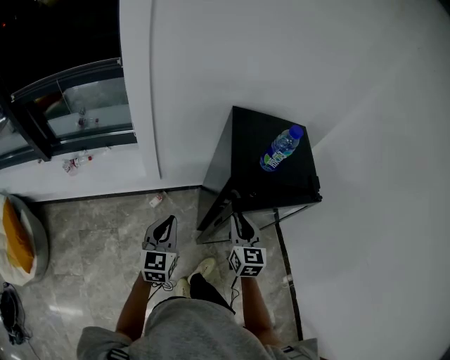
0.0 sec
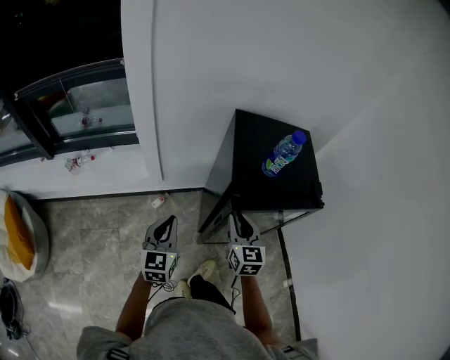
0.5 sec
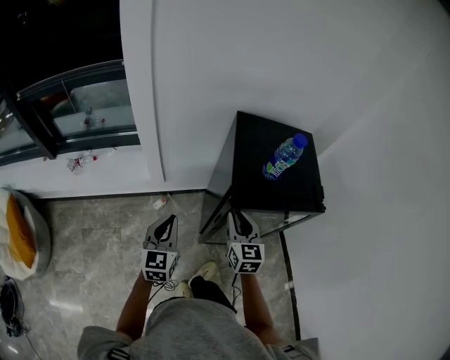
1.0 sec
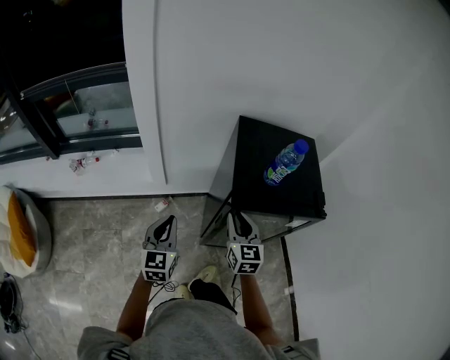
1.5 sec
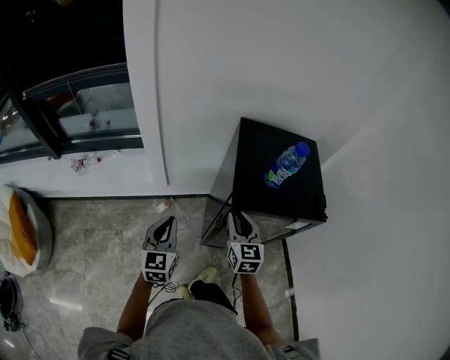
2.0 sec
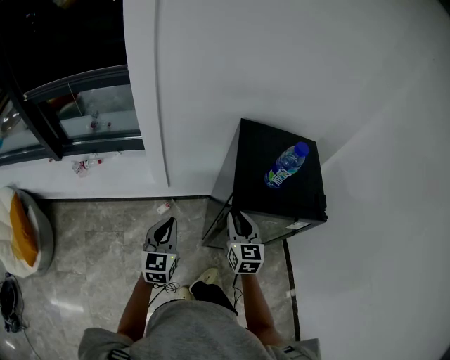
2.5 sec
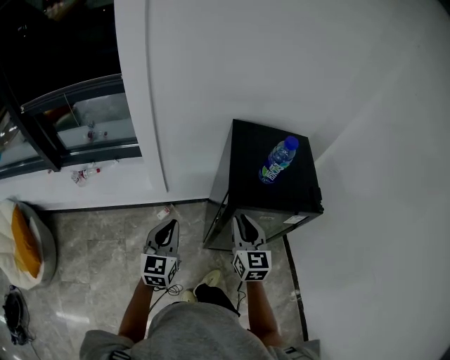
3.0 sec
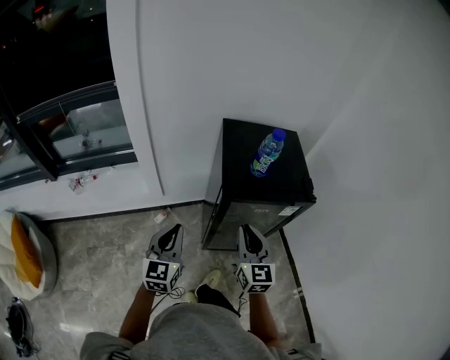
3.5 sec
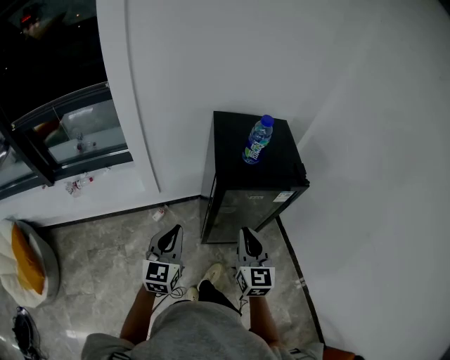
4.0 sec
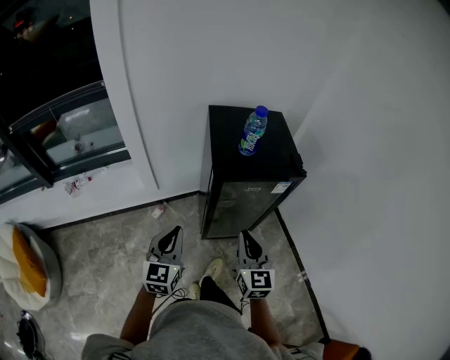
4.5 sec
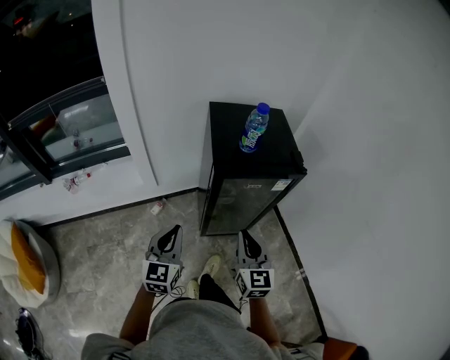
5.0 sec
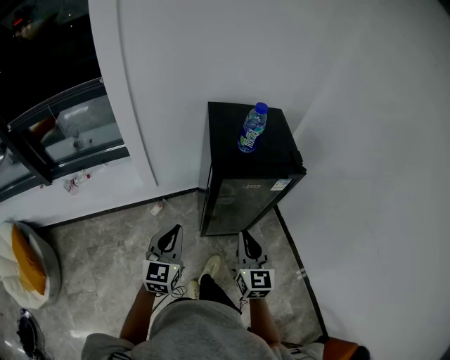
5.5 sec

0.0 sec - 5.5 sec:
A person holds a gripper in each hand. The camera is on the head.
0.0 sec - 2.0 sec: The right gripper is displaced forward by approximately 5 cm.
2.0 sec - 3.5 sec: The right gripper goes some 15 cm backward and upward, while the left gripper shifts some 10 cm backward and upward.
3.5 sec - 5.5 sec: The left gripper travels backward by some 5 cm. Meanwhile the right gripper heads backward, covering approximately 10 cm.

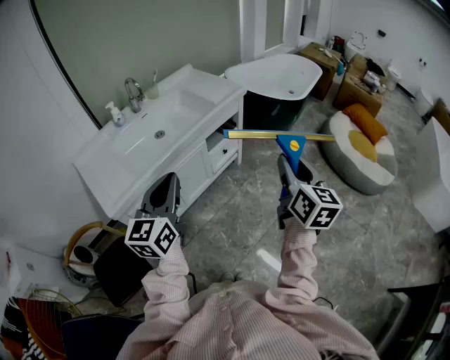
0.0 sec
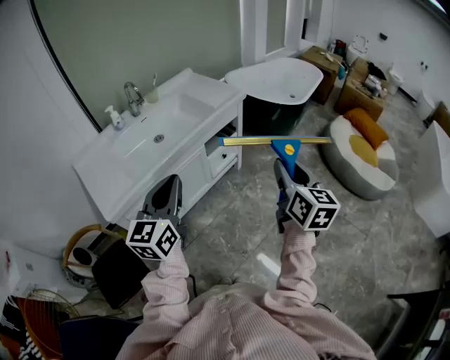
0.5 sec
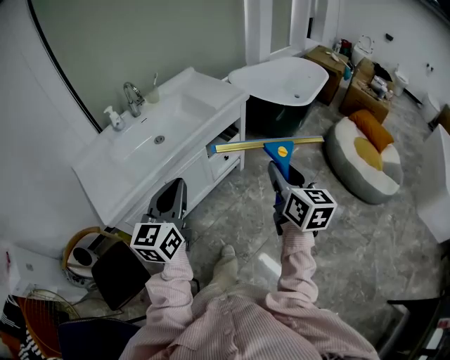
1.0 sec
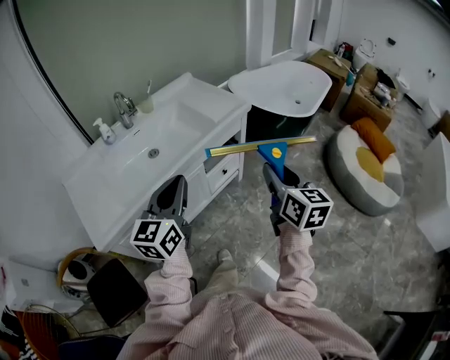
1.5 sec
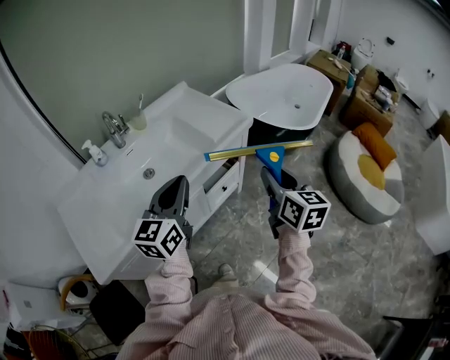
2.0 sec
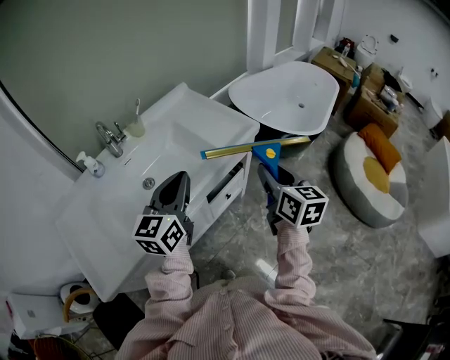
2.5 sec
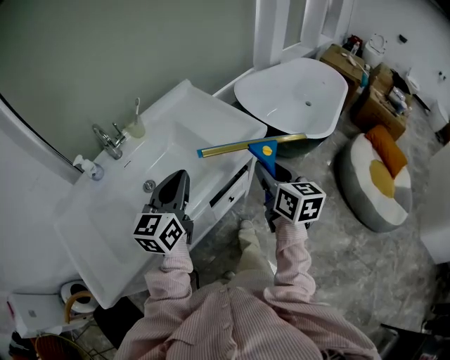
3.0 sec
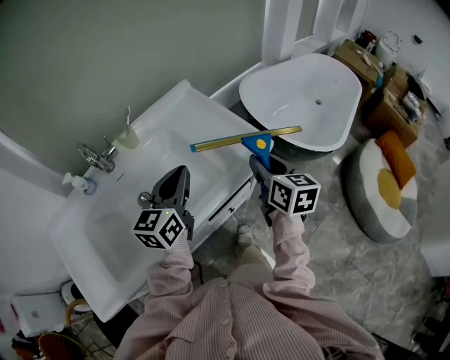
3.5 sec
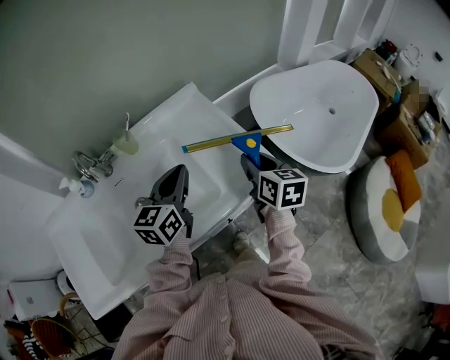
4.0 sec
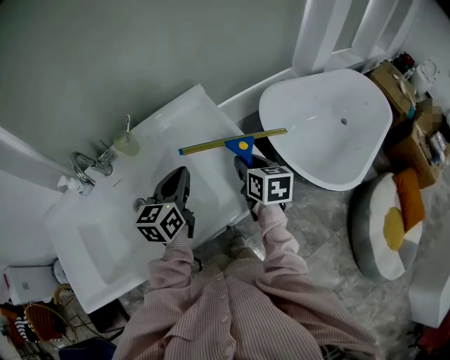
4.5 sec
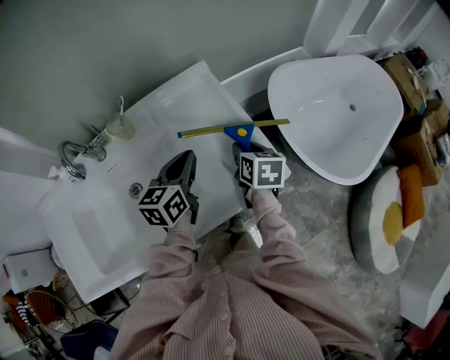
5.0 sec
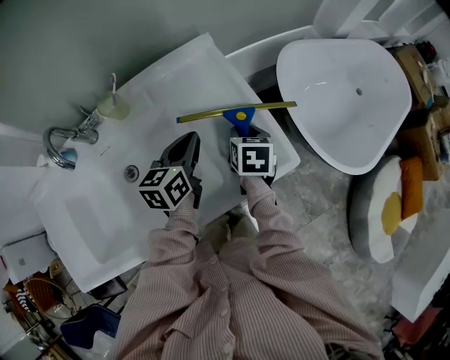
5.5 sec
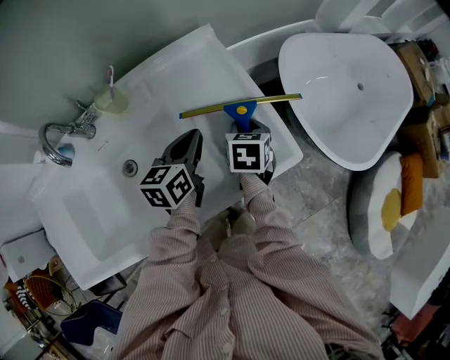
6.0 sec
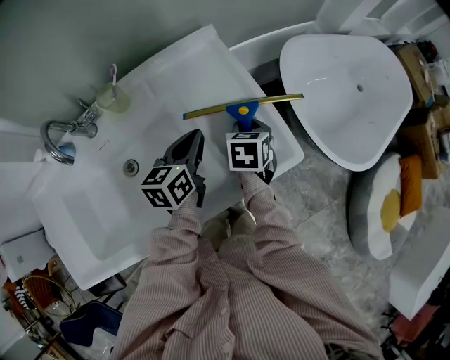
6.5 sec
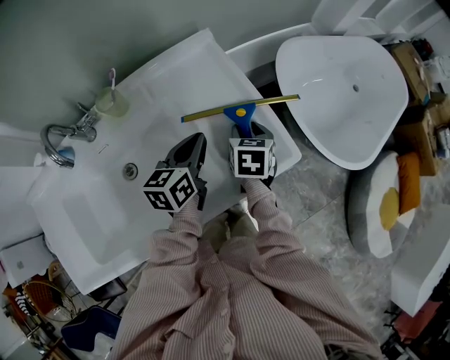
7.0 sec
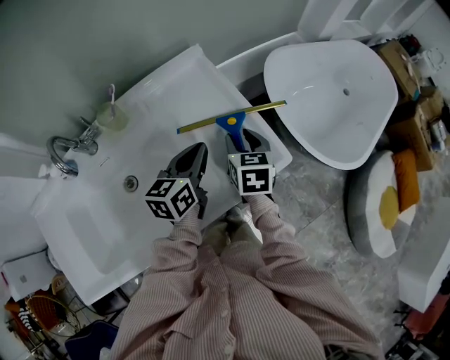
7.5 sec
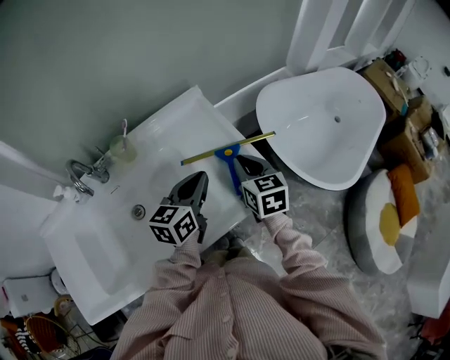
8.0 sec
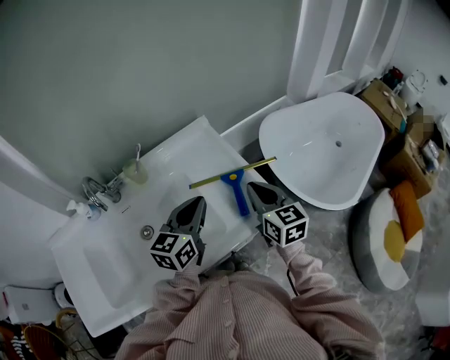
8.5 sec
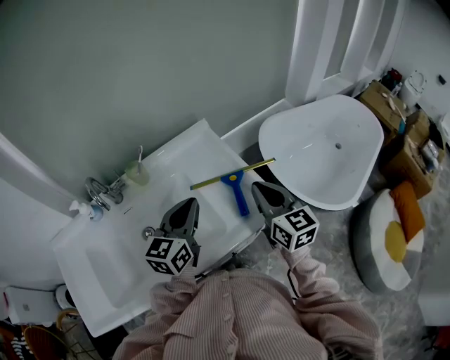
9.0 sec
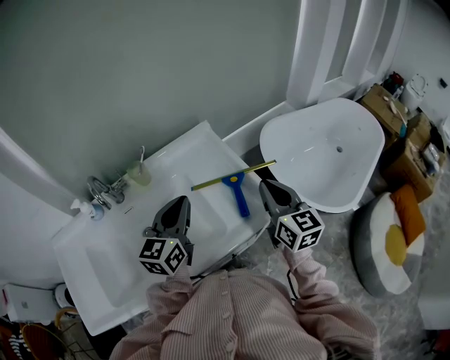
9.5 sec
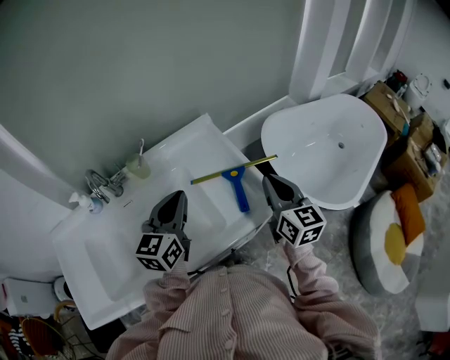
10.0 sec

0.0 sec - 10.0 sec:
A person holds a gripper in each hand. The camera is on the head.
0.0 sec - 2.0 sec: The grippers both shift forward by some 30 cm.
2.0 sec - 4.0 sec: The two grippers go roughly 35 cm forward.
4.0 sec - 6.0 sec: Both grippers move downward and forward, some 15 cm. The right gripper turns by about 30 degrees.
6.0 sec - 8.0 sec: Both grippers move upward, approximately 10 cm. The right gripper swivels some 20 degrees, and closes.
8.0 sec - 10.0 sec: The left gripper moves upward and to the left, about 10 cm, while the right gripper goes roughly 10 cm upward, to the right and backward, and swivels roughly 20 degrees.

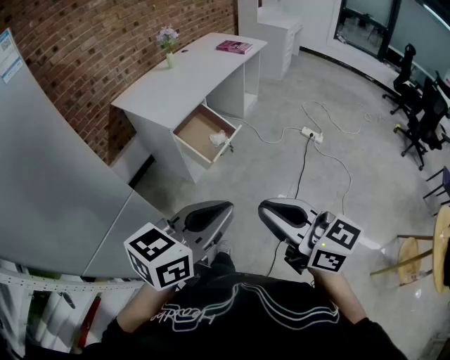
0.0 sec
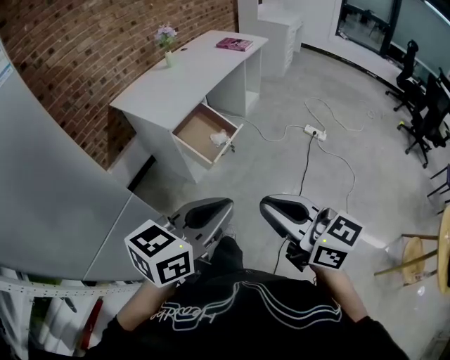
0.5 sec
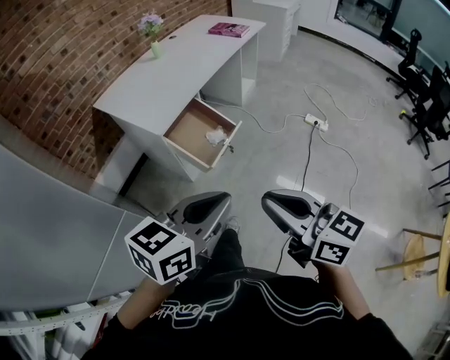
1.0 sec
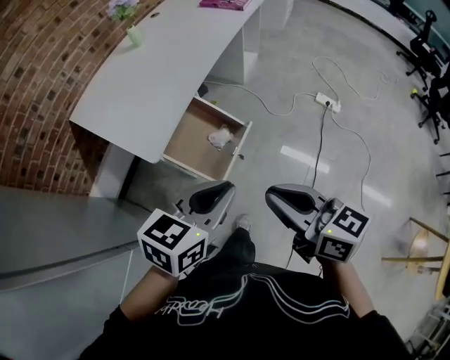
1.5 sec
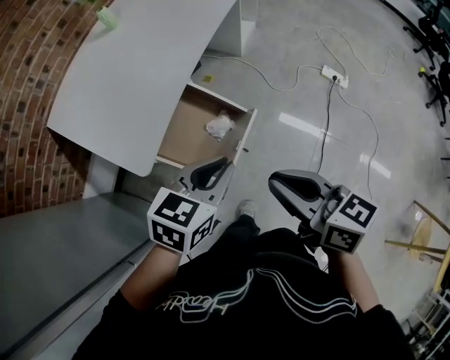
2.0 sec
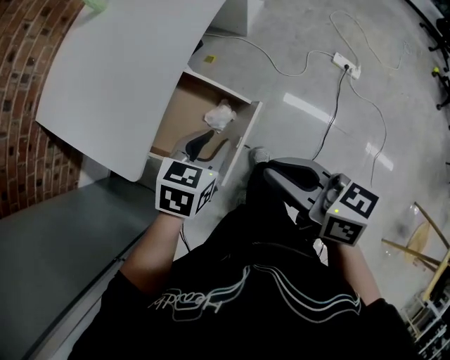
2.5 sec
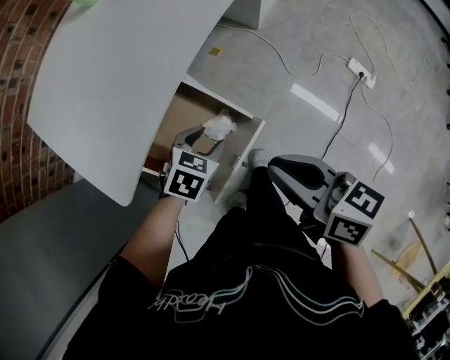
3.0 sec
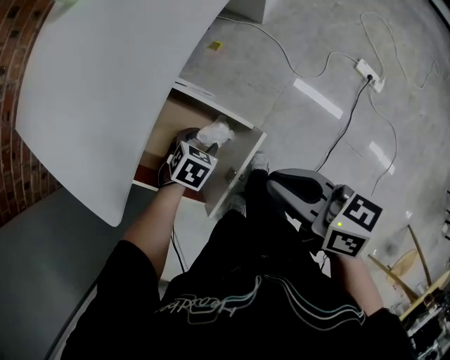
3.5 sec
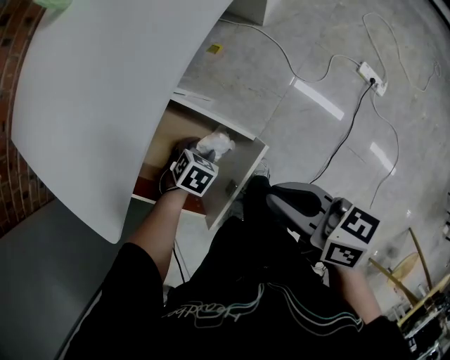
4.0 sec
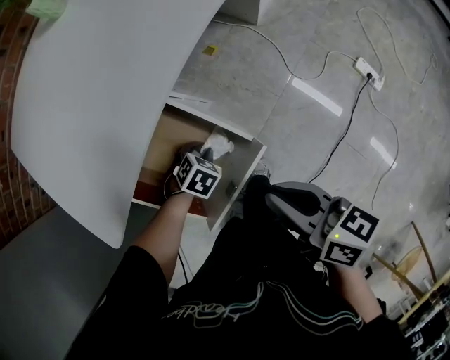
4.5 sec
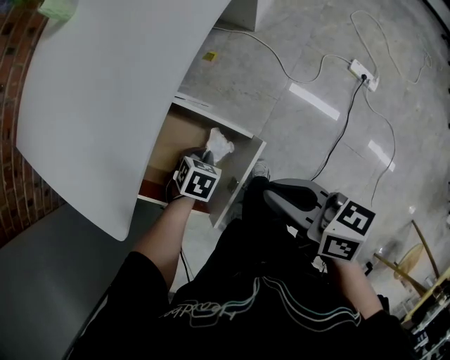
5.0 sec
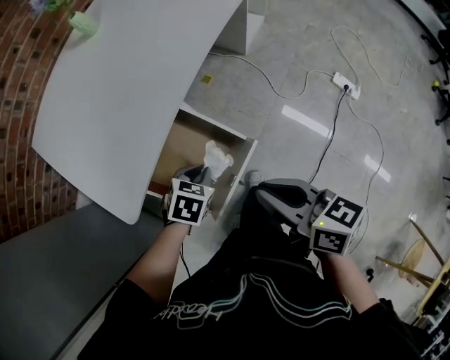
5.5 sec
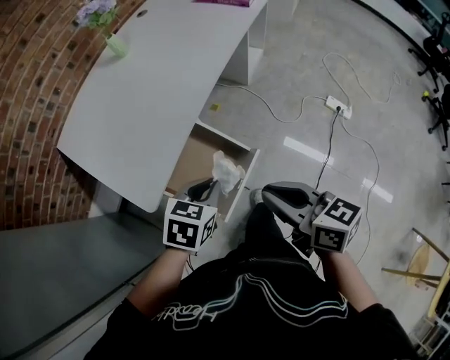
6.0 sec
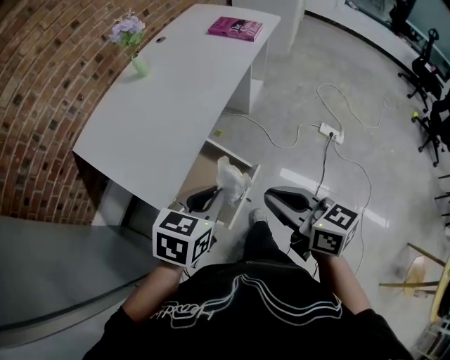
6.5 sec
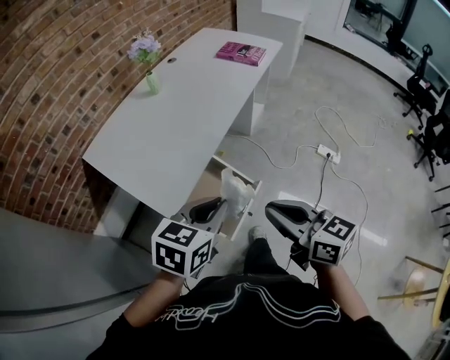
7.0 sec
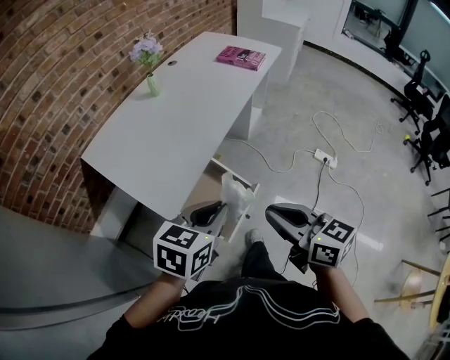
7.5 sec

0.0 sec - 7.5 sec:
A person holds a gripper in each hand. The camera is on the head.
0.0 sec - 2.0 sec: The pair of grippers is taken forward, approximately 60 cm. The right gripper turns by approximately 30 degrees. The left gripper travels downward by some 25 cm, and swivels some 20 degrees.
2.0 sec - 4.0 sec: The right gripper changes place by some 30 cm, and turns by about 20 degrees; the left gripper heads downward, covering roughly 40 cm, angles its fingers downward, by about 40 degrees, and opens its fingers.
4.0 sec - 5.5 sec: The left gripper travels upward by some 20 cm, and closes up. Meanwhile the right gripper moves upward, some 10 cm.
5.5 sec - 7.5 sec: The left gripper moves upward and backward, about 40 cm, and angles its fingers upward, by roughly 30 degrees. The right gripper goes approximately 25 cm upward and backward, and swivels approximately 20 degrees.

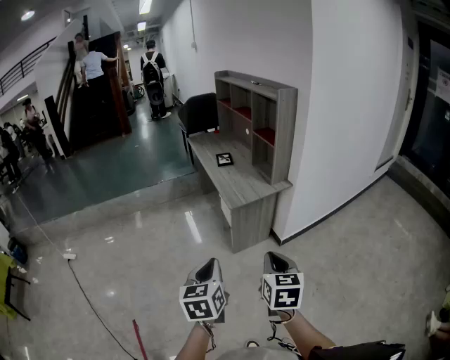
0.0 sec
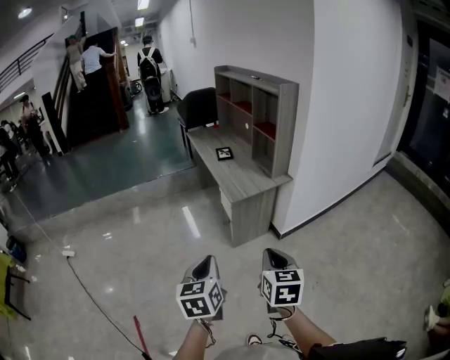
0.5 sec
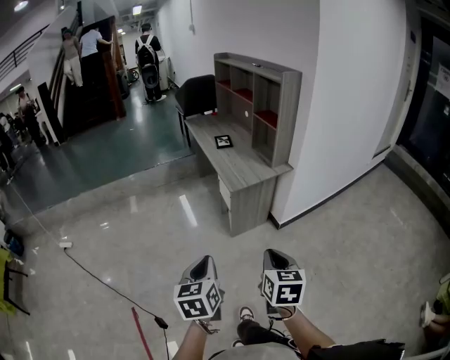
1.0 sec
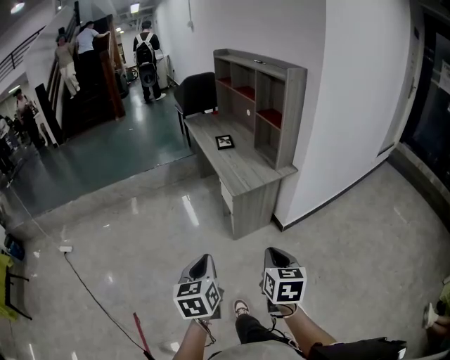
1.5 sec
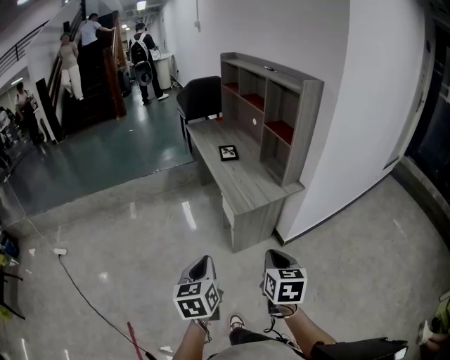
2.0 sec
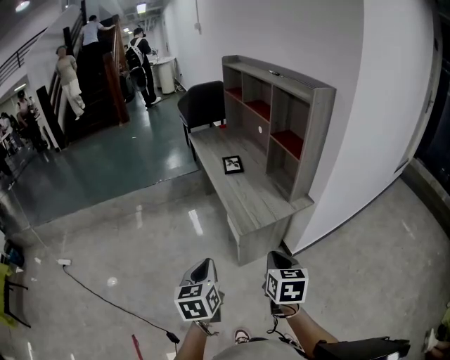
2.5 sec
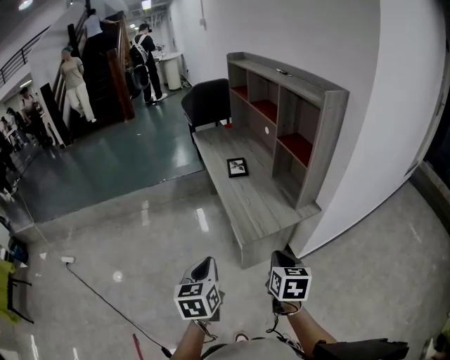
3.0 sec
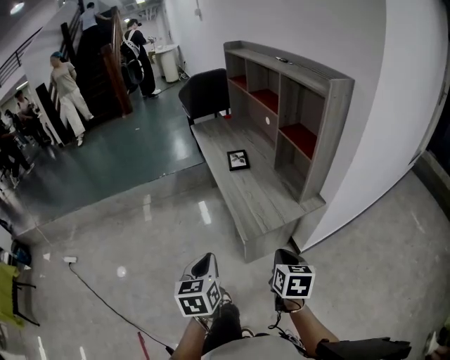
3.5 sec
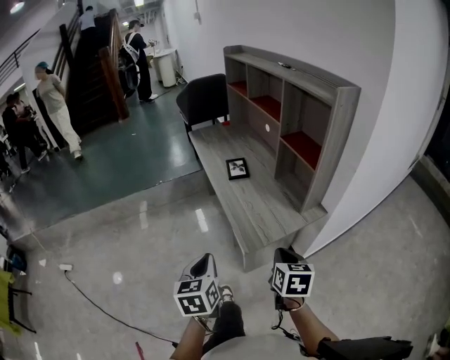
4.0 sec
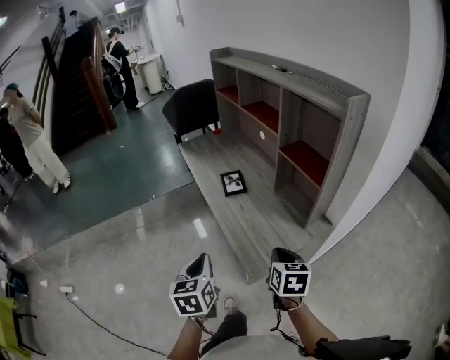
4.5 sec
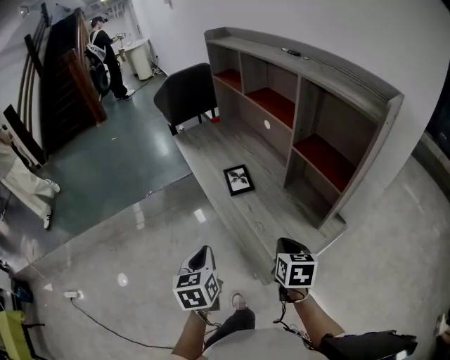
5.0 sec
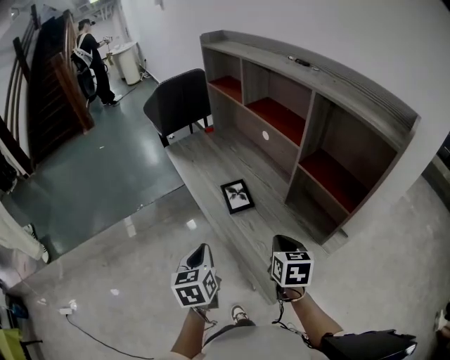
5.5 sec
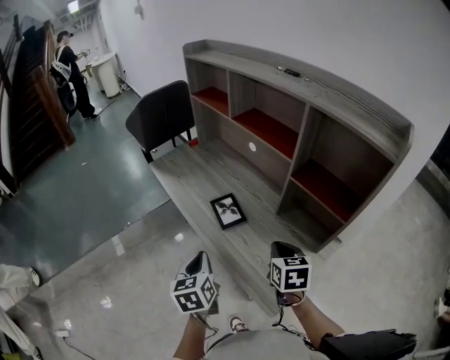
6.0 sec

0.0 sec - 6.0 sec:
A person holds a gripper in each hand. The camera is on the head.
0.0 sec - 2.0 sec: The right gripper shifts roughly 15 cm forward; the left gripper travels forward and to the left by about 15 cm.
2.0 sec - 4.0 sec: Both grippers move forward, roughly 25 cm.
4.0 sec - 6.0 sec: The two grippers go about 35 cm forward.
